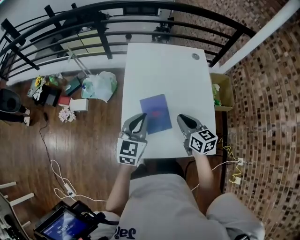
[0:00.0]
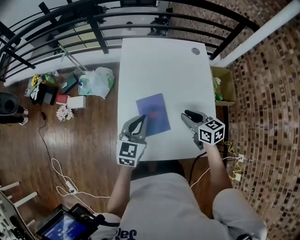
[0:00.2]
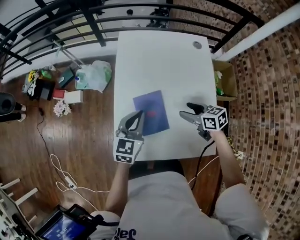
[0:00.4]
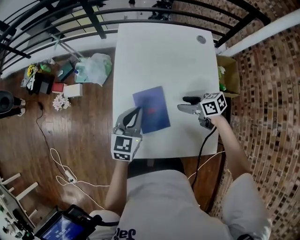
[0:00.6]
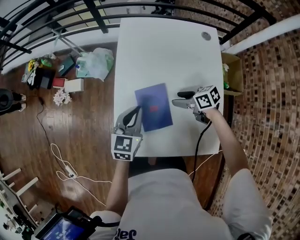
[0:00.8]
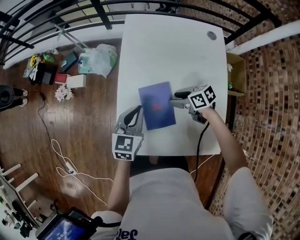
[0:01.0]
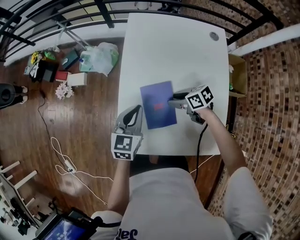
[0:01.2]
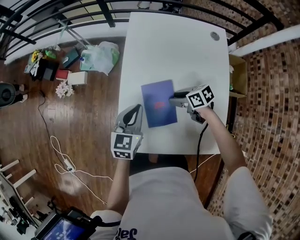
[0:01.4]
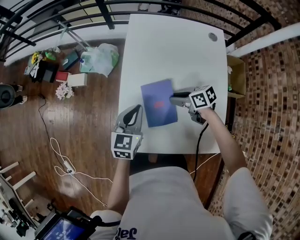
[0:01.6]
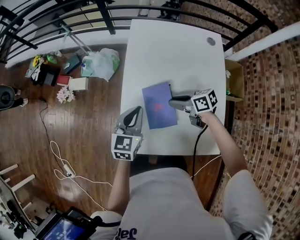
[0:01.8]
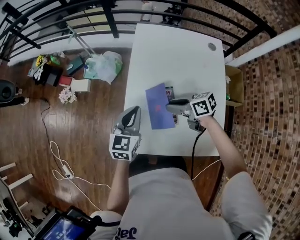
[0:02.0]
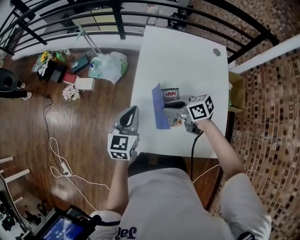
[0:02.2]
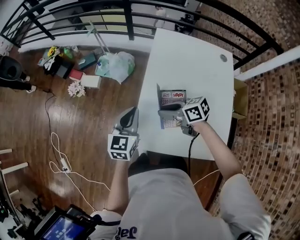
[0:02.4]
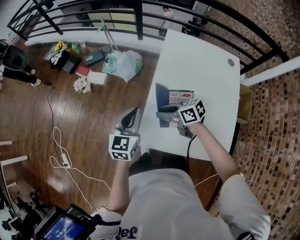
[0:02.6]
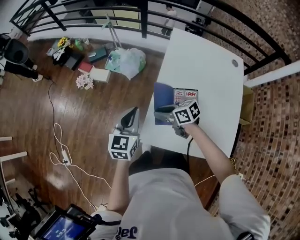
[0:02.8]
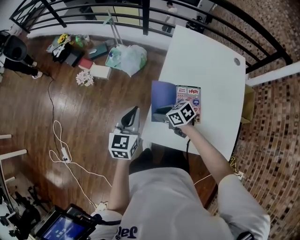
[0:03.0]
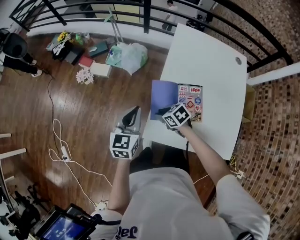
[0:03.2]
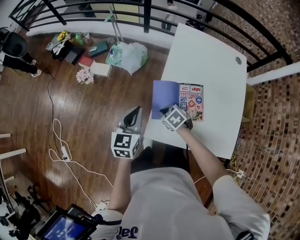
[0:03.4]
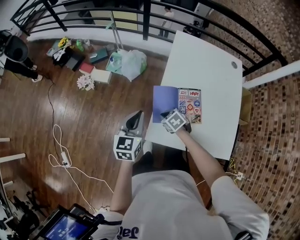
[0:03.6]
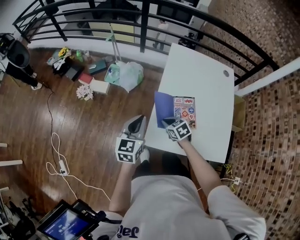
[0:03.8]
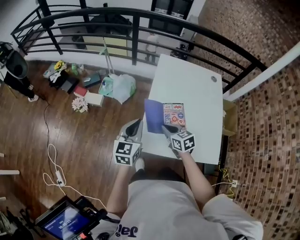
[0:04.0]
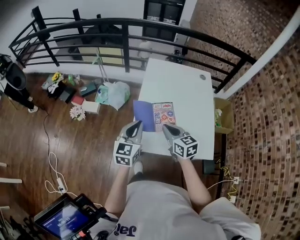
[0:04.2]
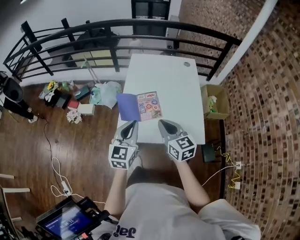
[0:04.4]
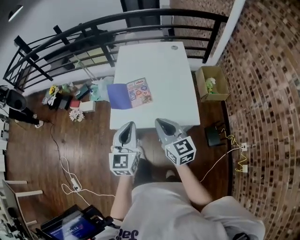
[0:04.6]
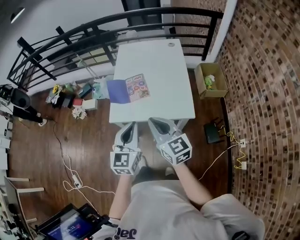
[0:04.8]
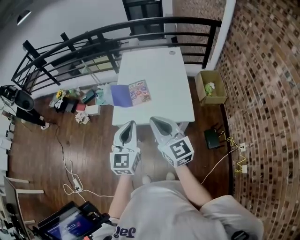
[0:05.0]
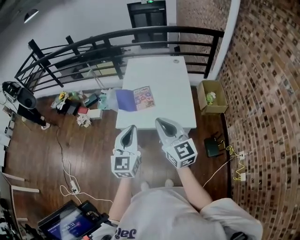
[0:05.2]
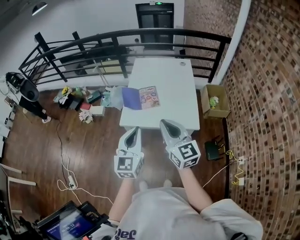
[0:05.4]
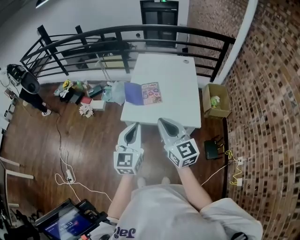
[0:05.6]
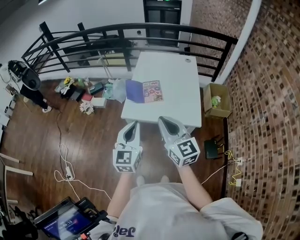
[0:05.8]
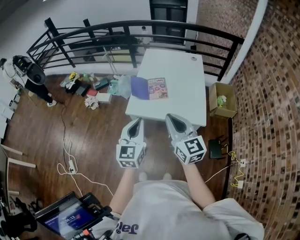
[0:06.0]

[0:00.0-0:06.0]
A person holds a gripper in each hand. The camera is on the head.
0:00.0 to 0:01.6: The left gripper shifts about 10 cm downward. Meanwhile the right gripper travels downward by about 15 cm, rotates about 50 degrees, and opens up.
0:01.6 to 0:03.0: Both grippers move to the left, some 20 cm.
0:03.0 to 0:04.4: The left gripper ends up roughly 25 cm from where it was, while the right gripper goes some 25 cm upward, changes its angle by roughly 60 degrees, and closes its fingers.
0:04.4 to 0:06.0: The right gripper is displaced backward and upward by approximately 20 cm. Meanwhile the left gripper shifts some 20 cm backward.

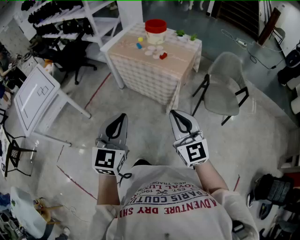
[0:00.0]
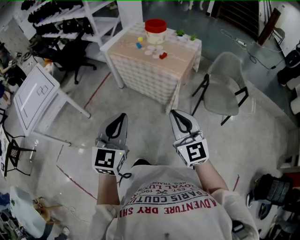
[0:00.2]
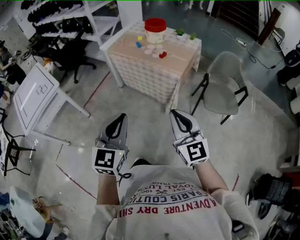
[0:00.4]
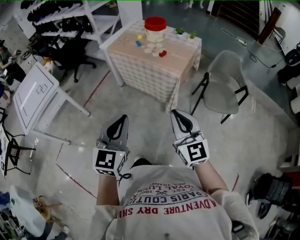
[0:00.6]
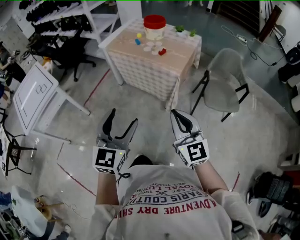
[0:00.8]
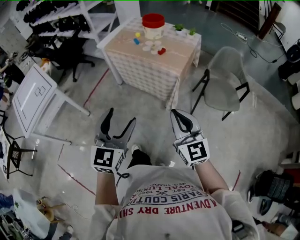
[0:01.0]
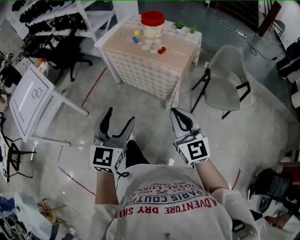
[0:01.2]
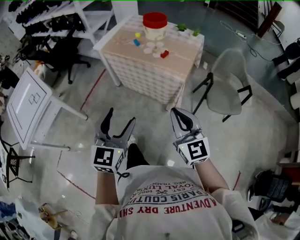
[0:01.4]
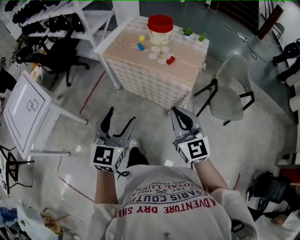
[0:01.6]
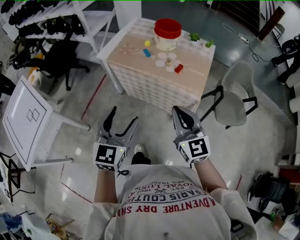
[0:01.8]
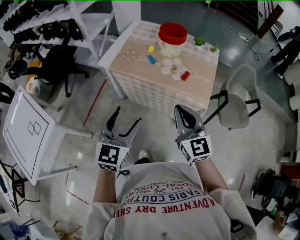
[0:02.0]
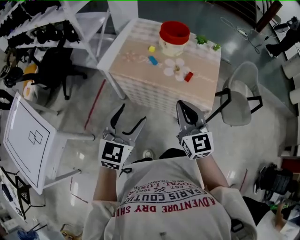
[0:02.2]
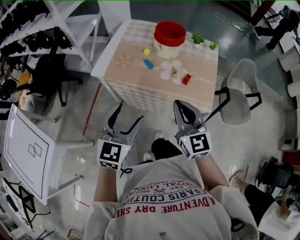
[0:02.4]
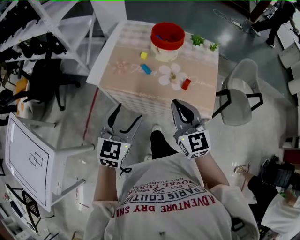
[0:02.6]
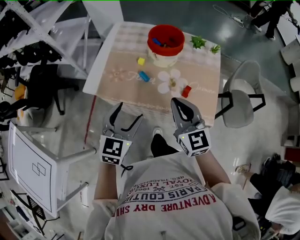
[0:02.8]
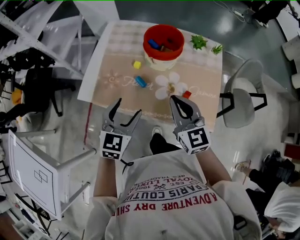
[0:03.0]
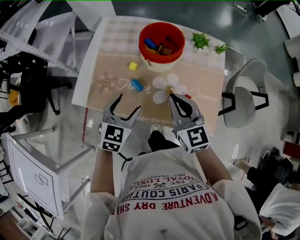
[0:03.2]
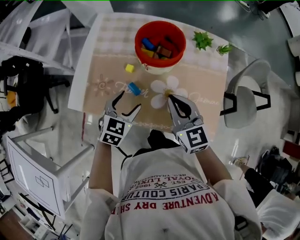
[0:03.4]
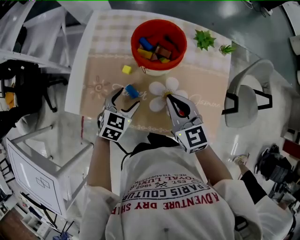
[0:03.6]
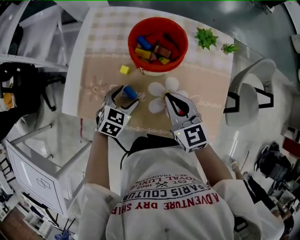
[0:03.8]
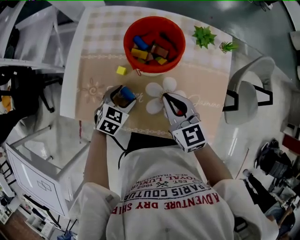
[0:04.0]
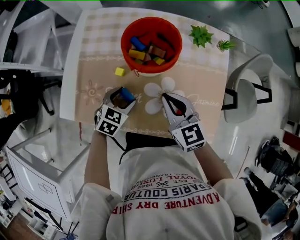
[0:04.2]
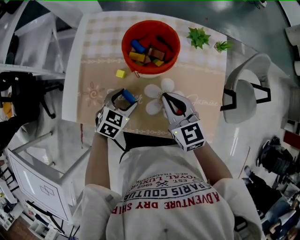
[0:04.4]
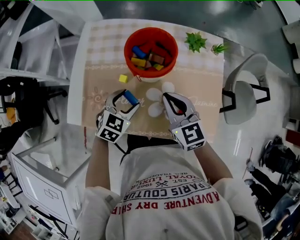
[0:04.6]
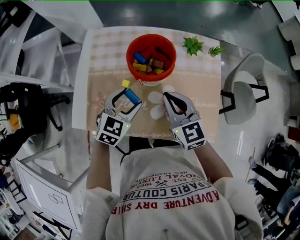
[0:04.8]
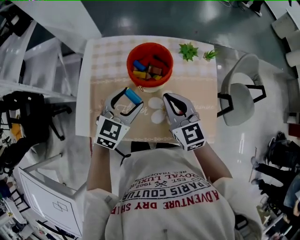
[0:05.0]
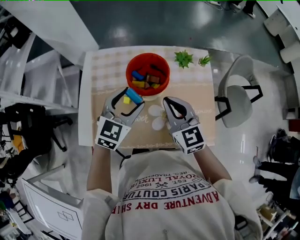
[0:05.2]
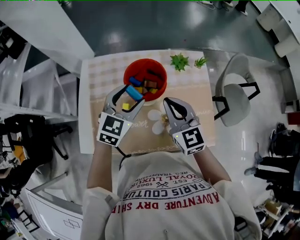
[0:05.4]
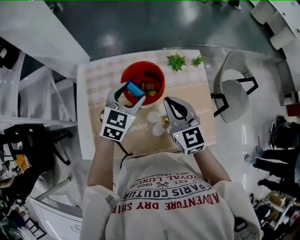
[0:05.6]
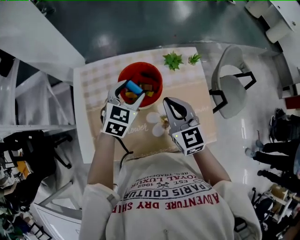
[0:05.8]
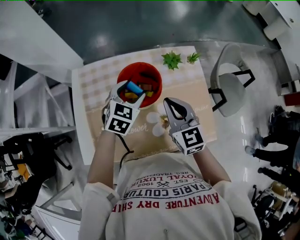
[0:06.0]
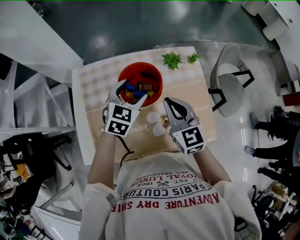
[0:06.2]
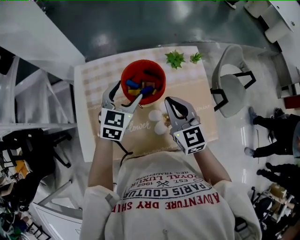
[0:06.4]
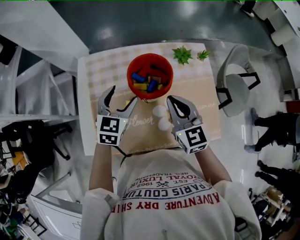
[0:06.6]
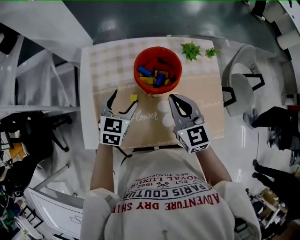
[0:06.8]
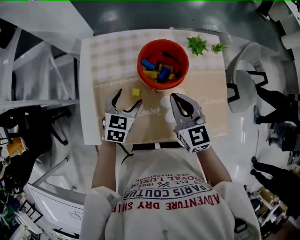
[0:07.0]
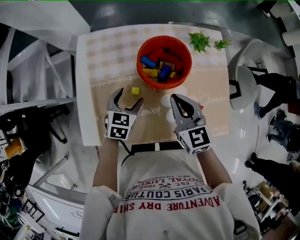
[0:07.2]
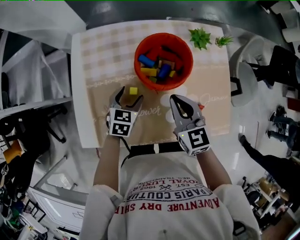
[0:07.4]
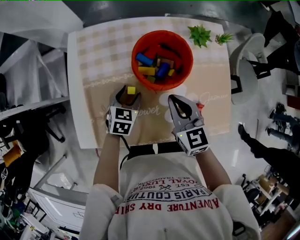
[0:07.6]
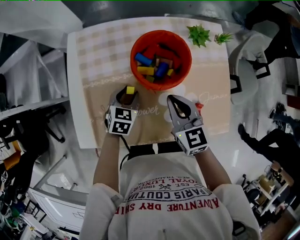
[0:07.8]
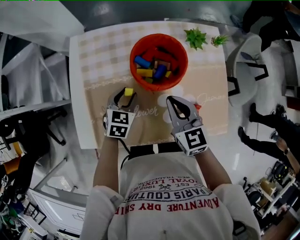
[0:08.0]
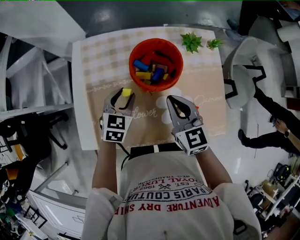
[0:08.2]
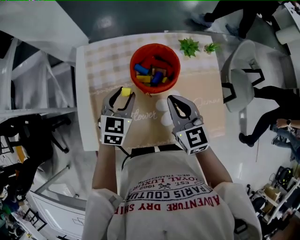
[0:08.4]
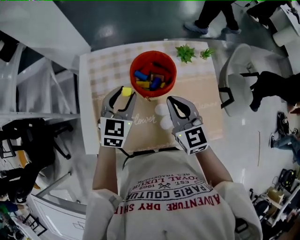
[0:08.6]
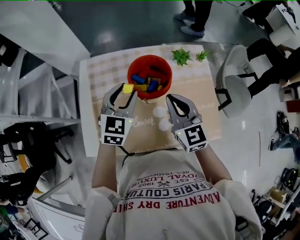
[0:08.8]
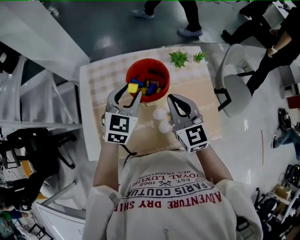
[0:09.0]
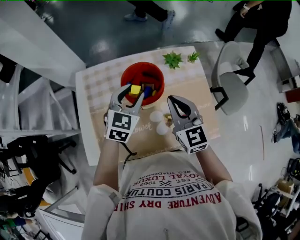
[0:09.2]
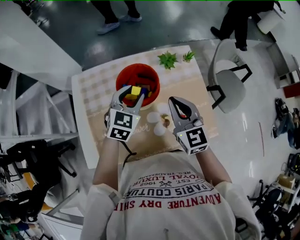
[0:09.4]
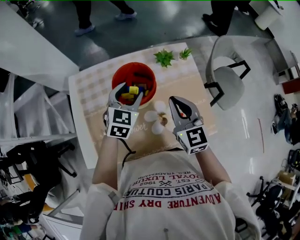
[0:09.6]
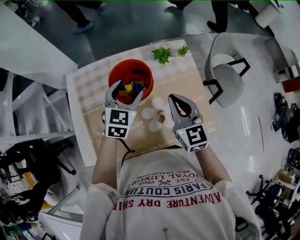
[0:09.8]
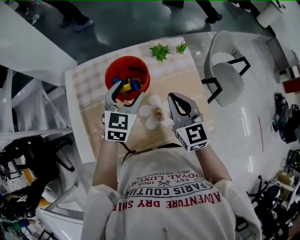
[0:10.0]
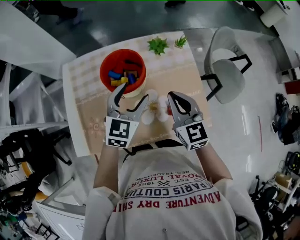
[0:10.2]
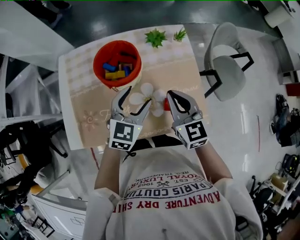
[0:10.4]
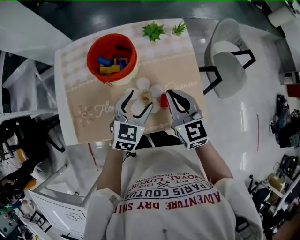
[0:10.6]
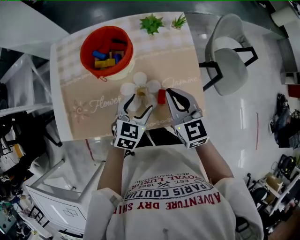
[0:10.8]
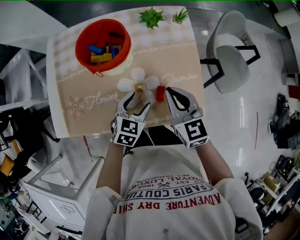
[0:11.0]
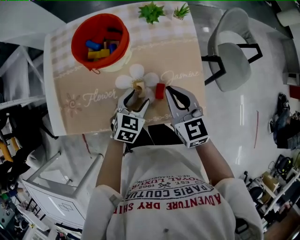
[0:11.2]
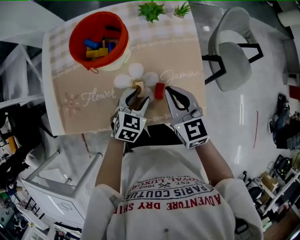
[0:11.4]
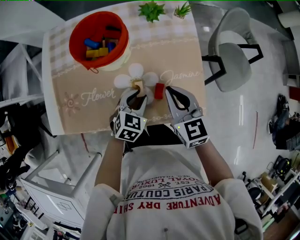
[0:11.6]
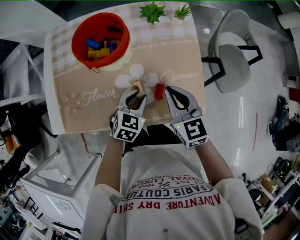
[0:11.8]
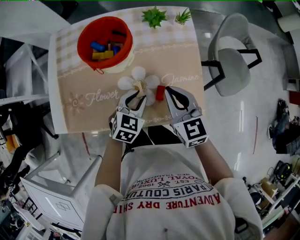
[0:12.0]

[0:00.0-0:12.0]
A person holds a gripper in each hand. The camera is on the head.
0:00.0 to 0:01.6: Both grippers move forward, about 20 cm. The left gripper opens its fingers.
0:01.6 to 0:03.0: The pair of grippers is taken forward, approximately 40 cm. The left gripper swivels approximately 20 degrees.
0:03.0 to 0:04.4: The left gripper moves downward and forward, roughly 20 cm, and rotates some 30 degrees. The right gripper is displaced forward and downward by some 15 cm.
0:04.4 to 0:06.0: The right gripper shifts approximately 10 cm upward and forward, and turns by approximately 20 degrees. Meanwhile the left gripper moves upward and forward, roughly 25 cm.
0:06.0 to 0:07.6: The right gripper heads downward and to the left, covering roughly 10 cm. The left gripper heads downward, to the left and backward, covering approximately 20 cm, and rotates roughly 20 degrees.
0:07.6 to 0:09.0: The left gripper travels upward by some 25 cm, and changes its angle by about 30 degrees. The right gripper heads upward, covering approximately 10 cm.
0:09.0 to 0:10.4: The right gripper shifts approximately 15 cm to the right and downward, while the left gripper goes some 15 cm to the right, backward and downward, and opens up.
0:10.4 to 0:12.0: The right gripper goes about 5 cm downward. Meanwhile the left gripper heads downward, covering approximately 15 cm, and closes its fingers.

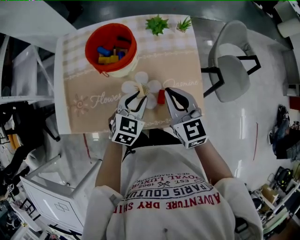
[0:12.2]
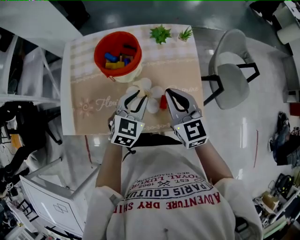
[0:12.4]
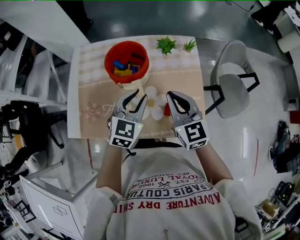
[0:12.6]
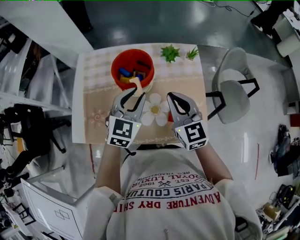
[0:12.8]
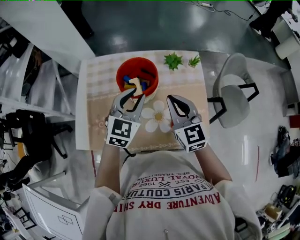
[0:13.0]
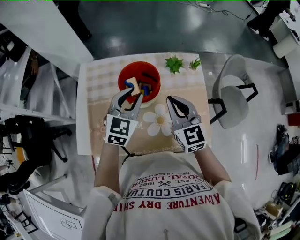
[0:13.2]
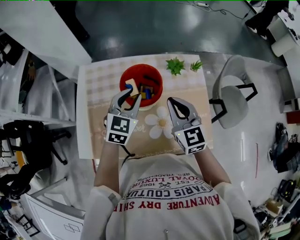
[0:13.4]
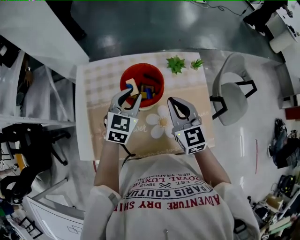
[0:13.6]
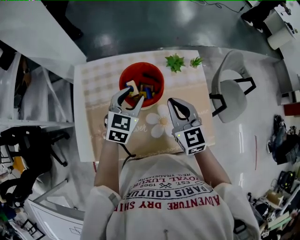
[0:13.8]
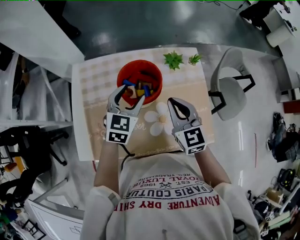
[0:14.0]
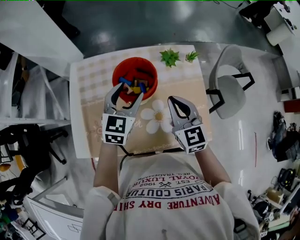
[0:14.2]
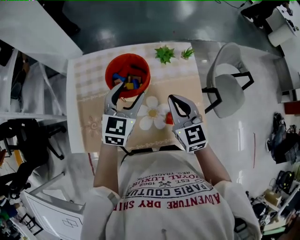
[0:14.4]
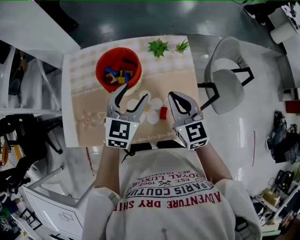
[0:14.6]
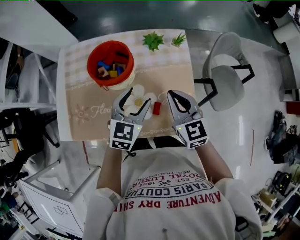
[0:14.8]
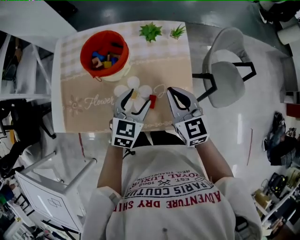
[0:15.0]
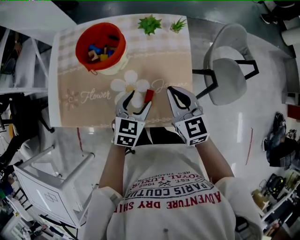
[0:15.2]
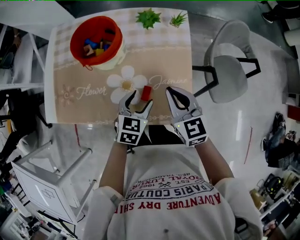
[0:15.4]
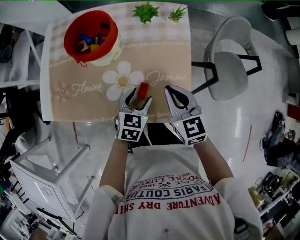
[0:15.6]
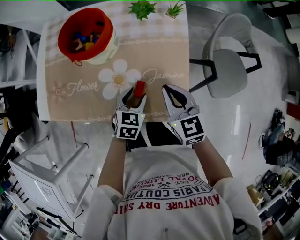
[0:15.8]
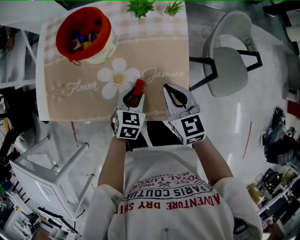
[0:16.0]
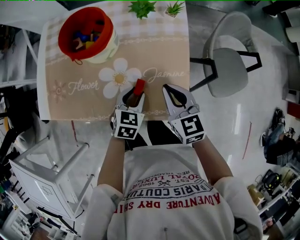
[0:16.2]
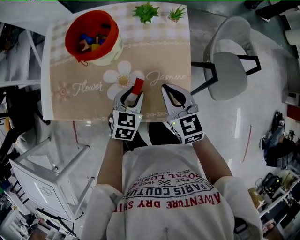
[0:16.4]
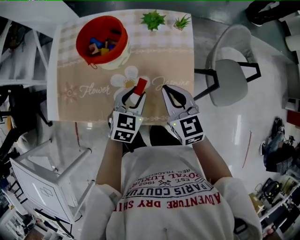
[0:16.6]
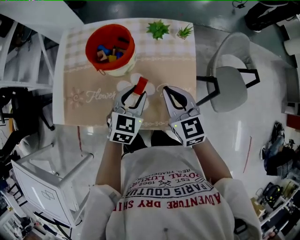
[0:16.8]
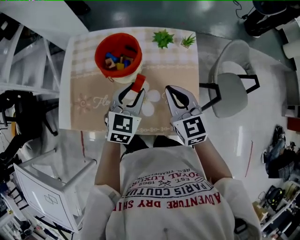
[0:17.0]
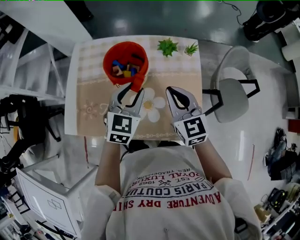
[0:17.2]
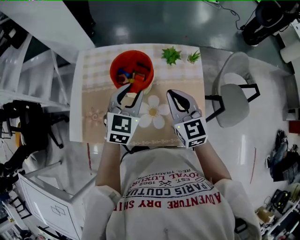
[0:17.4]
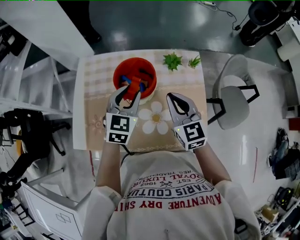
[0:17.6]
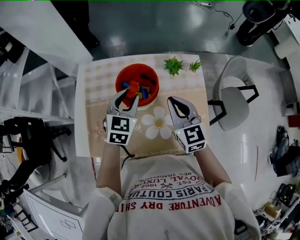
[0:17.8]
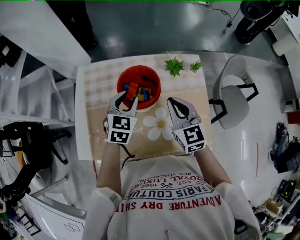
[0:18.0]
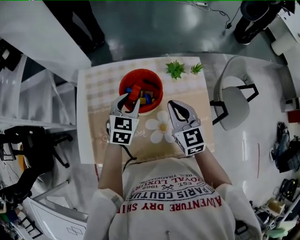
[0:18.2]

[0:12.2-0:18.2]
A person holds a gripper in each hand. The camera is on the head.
0:12.2 to 0:13.8: The left gripper goes some 20 cm forward, to the left and upward; the right gripper moves to the left, forward and upward, some 15 cm.
0:13.8 to 0:15.2: The two grippers go about 20 cm to the right, backward and downward.
0:15.2 to 0:16.6: The left gripper moves about 10 cm downward and comes back, and closes its fingers.
0:16.6 to 0:18.2: The left gripper heads forward, to the left and upward, covering roughly 25 cm. Meanwhile the right gripper travels to the left, forward and upward by some 15 cm.
